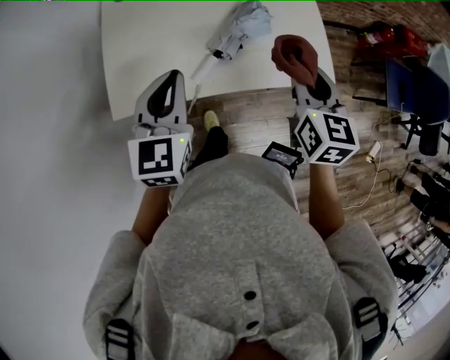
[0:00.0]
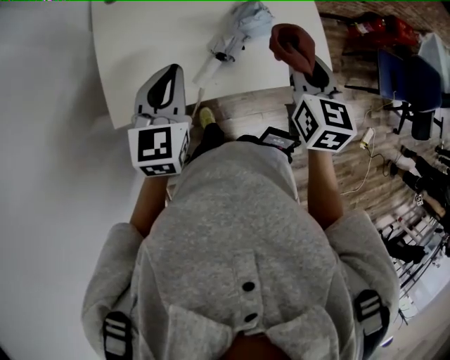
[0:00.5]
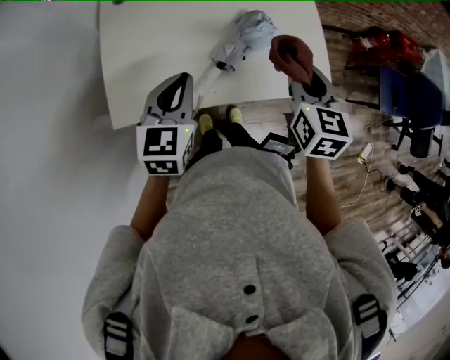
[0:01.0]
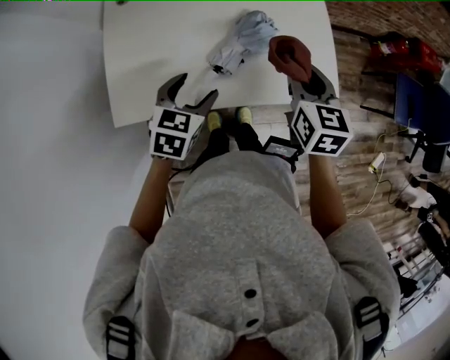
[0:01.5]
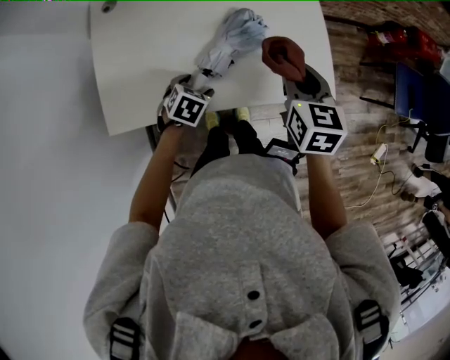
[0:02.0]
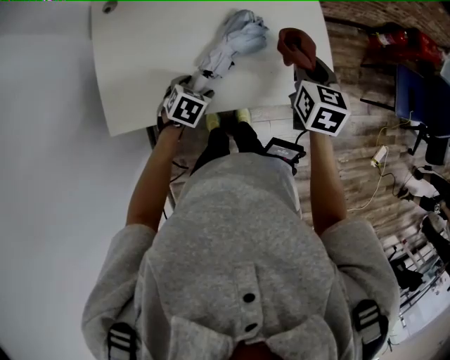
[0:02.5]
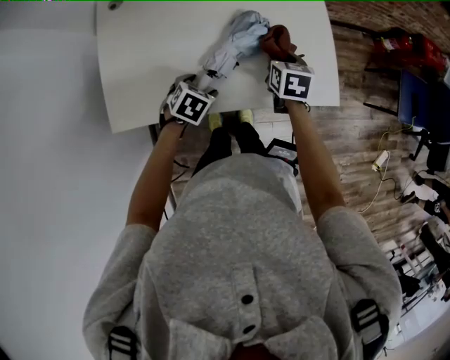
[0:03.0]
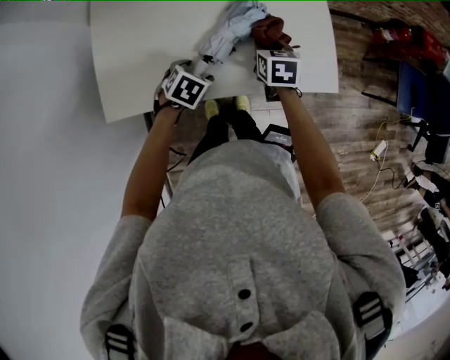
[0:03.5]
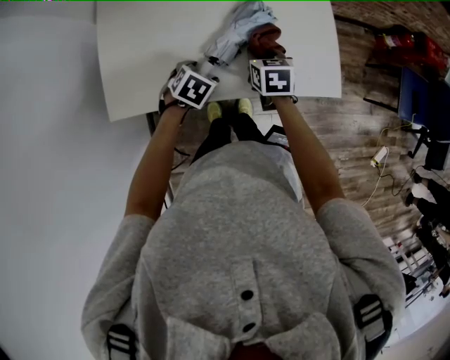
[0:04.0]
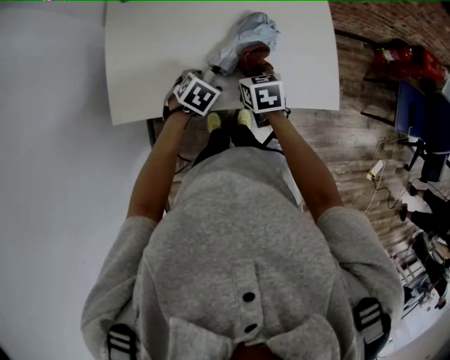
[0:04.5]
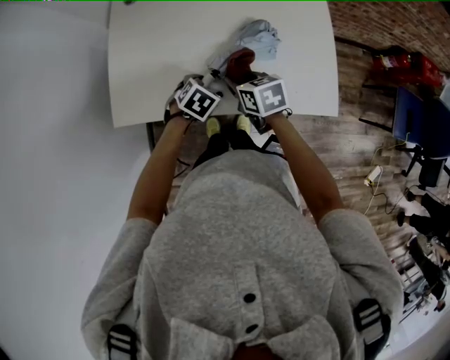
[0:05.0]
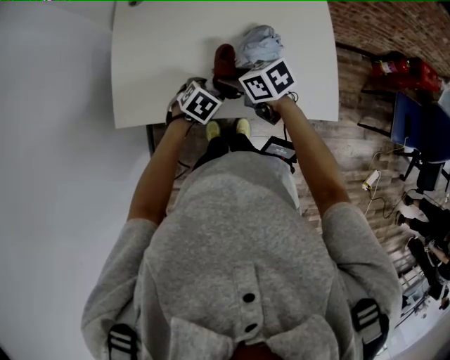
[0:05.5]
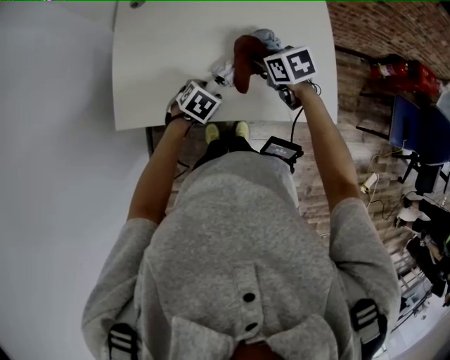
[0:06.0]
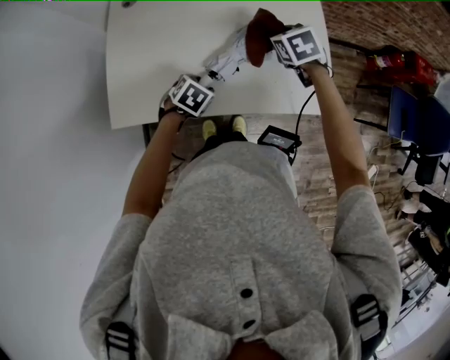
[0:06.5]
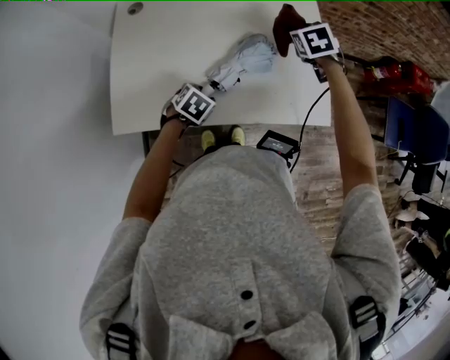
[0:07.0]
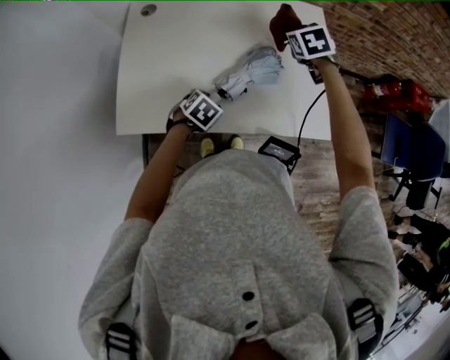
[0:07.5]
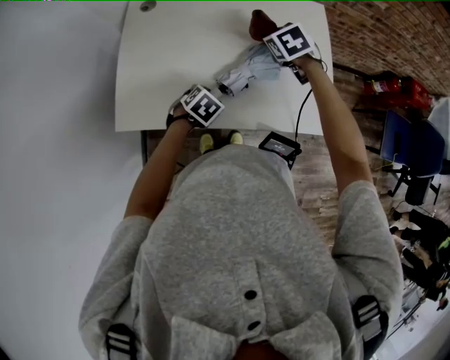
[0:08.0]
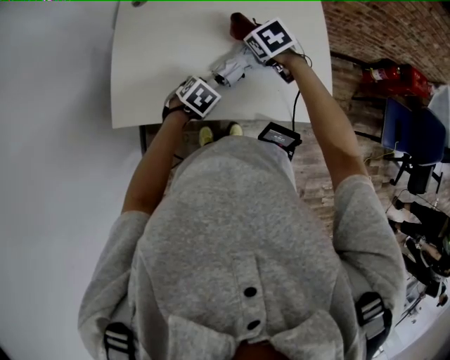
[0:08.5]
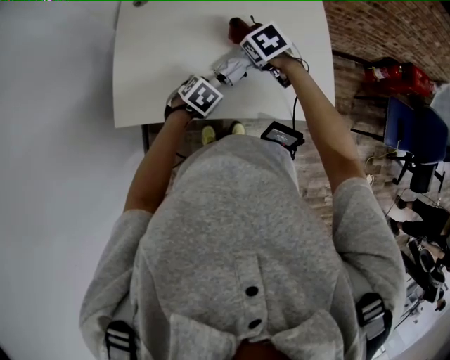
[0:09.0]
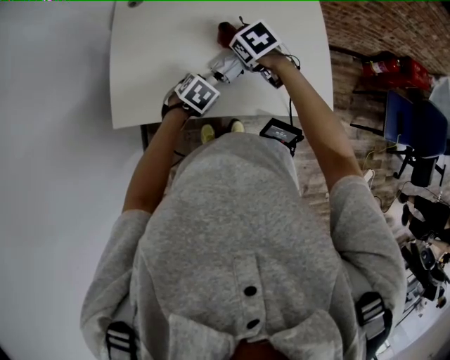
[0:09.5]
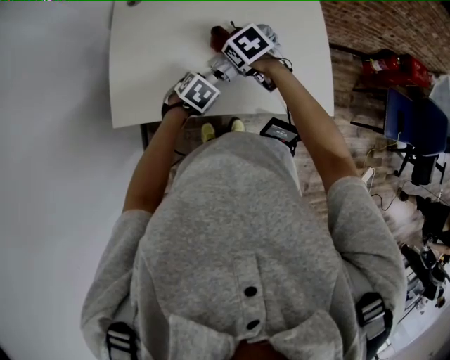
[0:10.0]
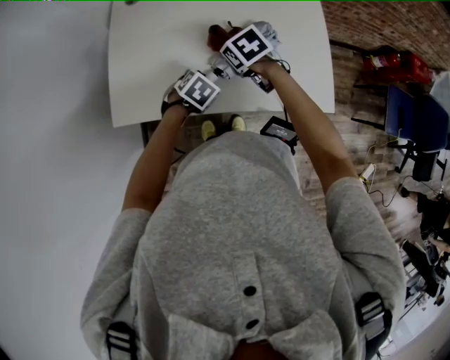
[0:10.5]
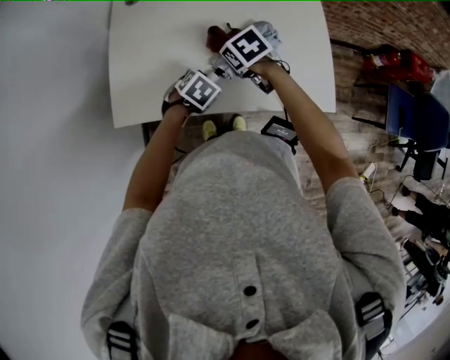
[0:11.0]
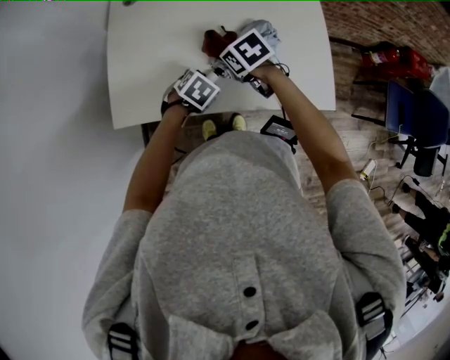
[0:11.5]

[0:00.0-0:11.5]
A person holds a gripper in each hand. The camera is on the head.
0:00.0 to 0:02.0: The right gripper goes some 10 cm forward and downward; the left gripper heads downward, covering approximately 25 cm, tilts its fingers about 50 degrees downward, and opens.
0:02.0 to 0:04.0: The right gripper shifts about 15 cm downward and to the left.
0:04.0 to 0:06.0: The right gripper rotates about 30 degrees.
0:06.0 to 0:07.5: The right gripper travels forward and upward by approximately 15 cm, and changes its angle by roughly 30 degrees.
0:07.5 to 0:09.5: The right gripper shifts about 20 cm backward, to the left and downward, and rotates about 30 degrees.
0:09.5 to 0:11.5: The grippers make only small movements.

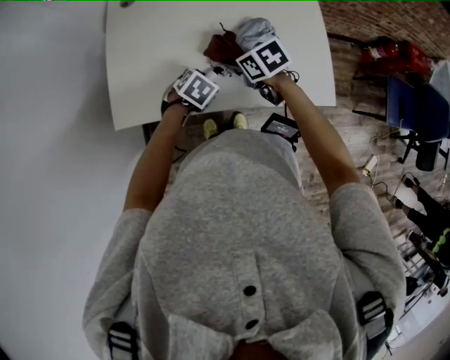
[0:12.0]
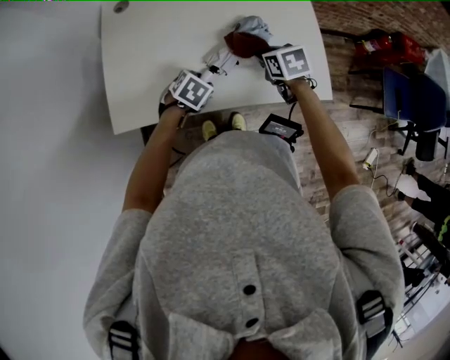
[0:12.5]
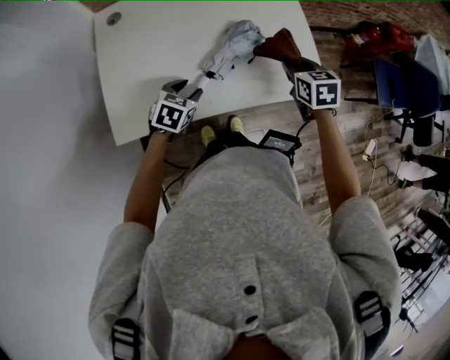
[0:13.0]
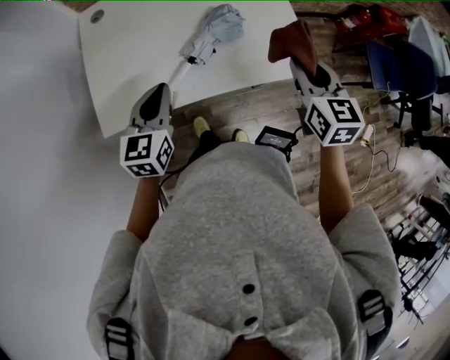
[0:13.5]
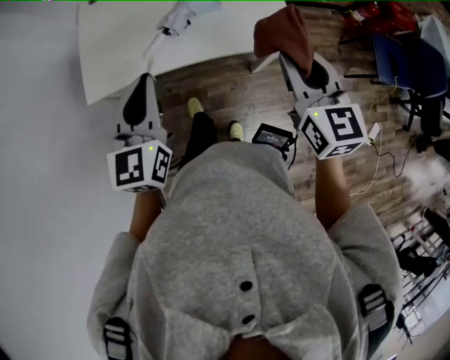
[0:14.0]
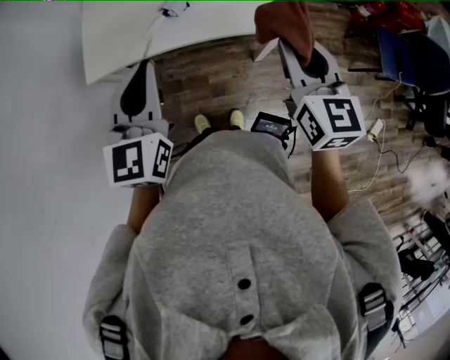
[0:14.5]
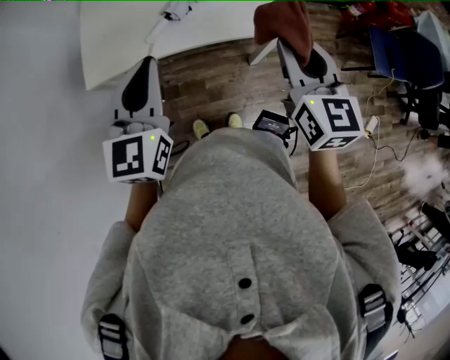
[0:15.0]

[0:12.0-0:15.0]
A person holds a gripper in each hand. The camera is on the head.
0:12.0 to 0:13.5: The left gripper travels upward by roughly 20 cm, tips its fingers upward by some 40 degrees, and closes up; the right gripper shifts by approximately 30 cm, and swivels approximately 50 degrees.
0:13.5 to 0:15.0: The right gripper heads backward, covering some 15 cm; the left gripper heads backward, upward and to the right, covering some 25 cm.
